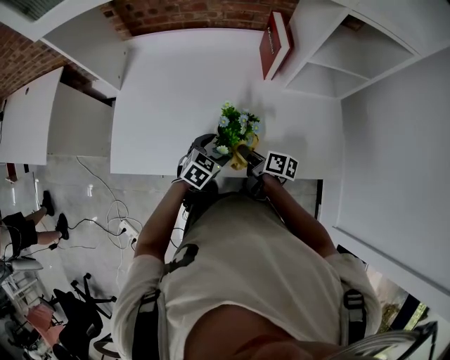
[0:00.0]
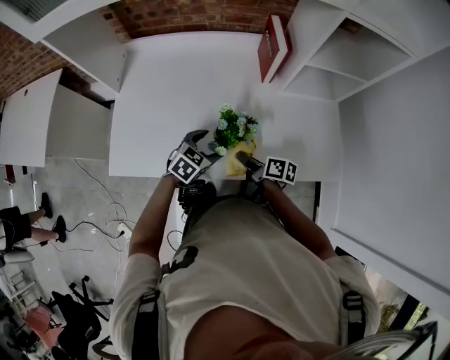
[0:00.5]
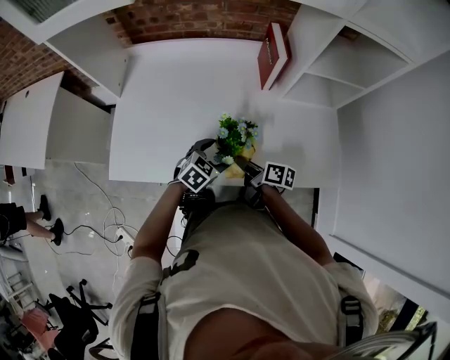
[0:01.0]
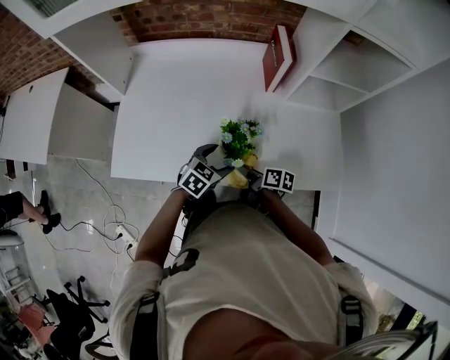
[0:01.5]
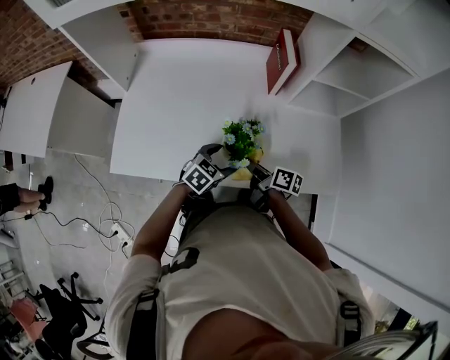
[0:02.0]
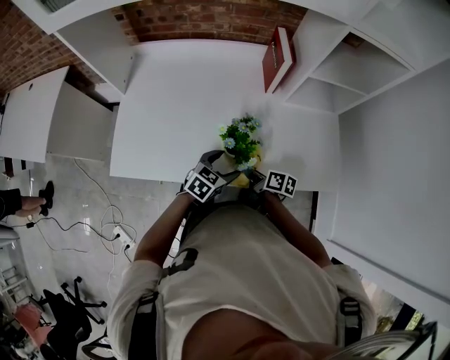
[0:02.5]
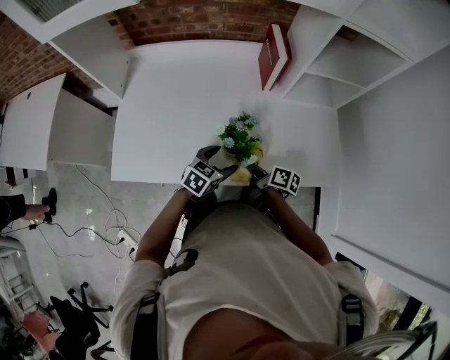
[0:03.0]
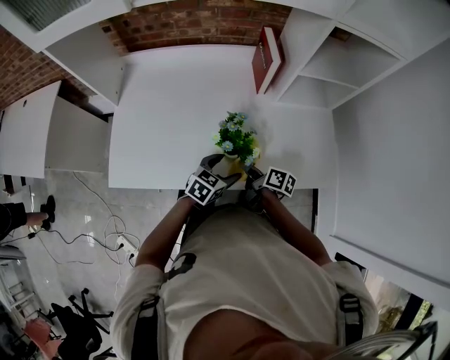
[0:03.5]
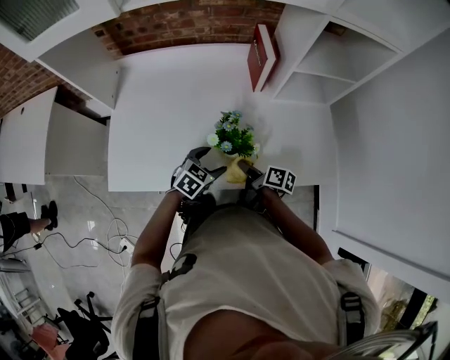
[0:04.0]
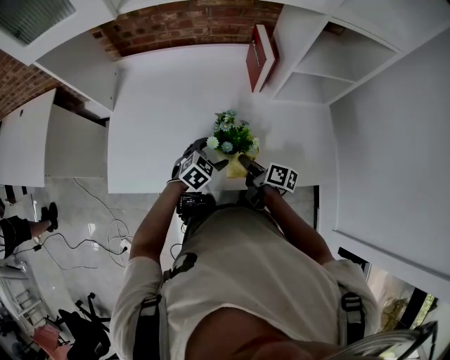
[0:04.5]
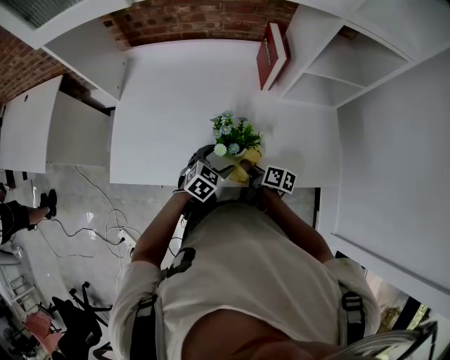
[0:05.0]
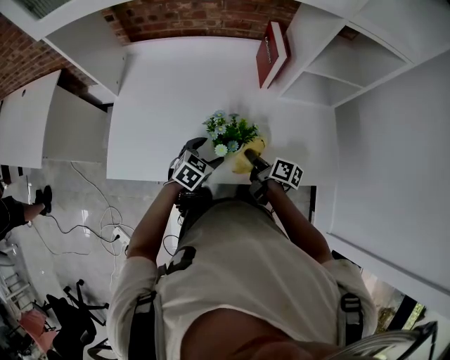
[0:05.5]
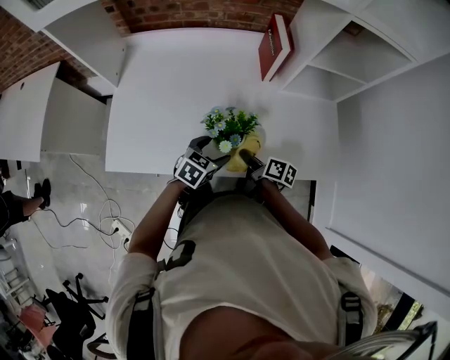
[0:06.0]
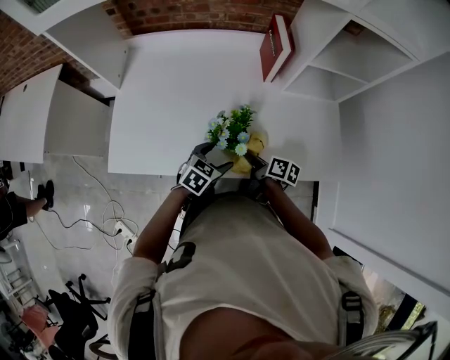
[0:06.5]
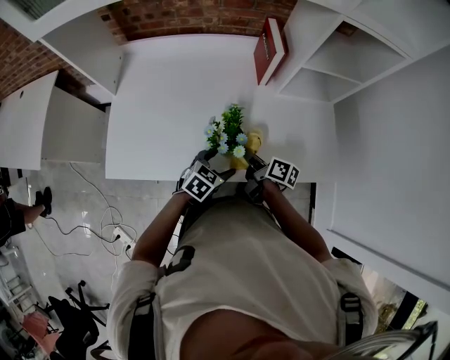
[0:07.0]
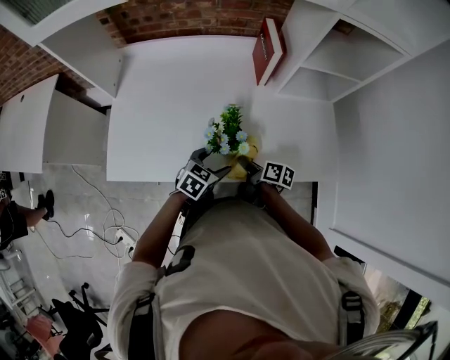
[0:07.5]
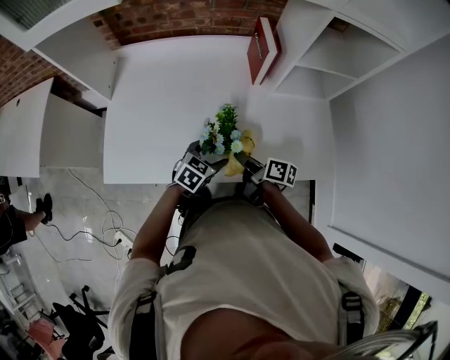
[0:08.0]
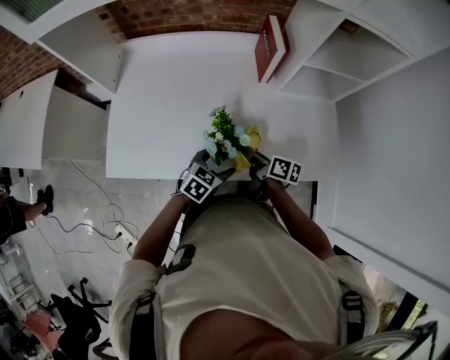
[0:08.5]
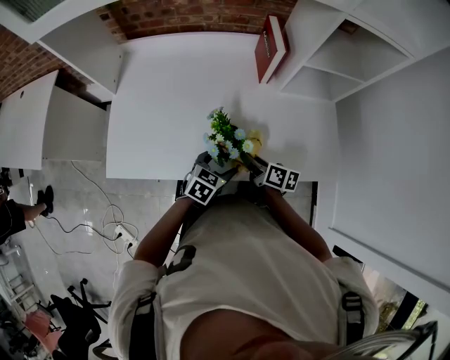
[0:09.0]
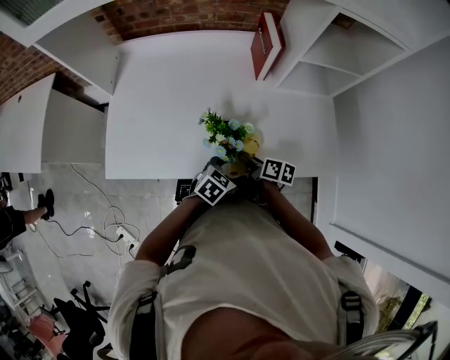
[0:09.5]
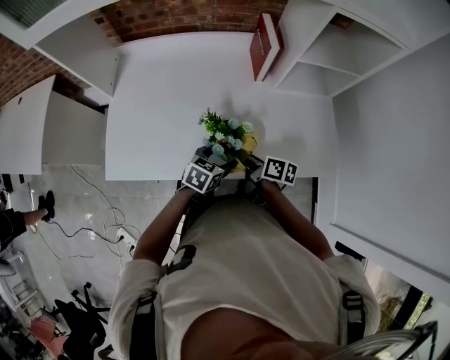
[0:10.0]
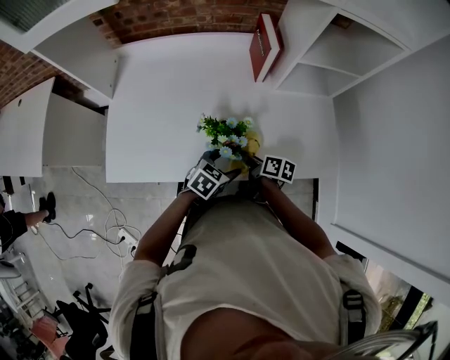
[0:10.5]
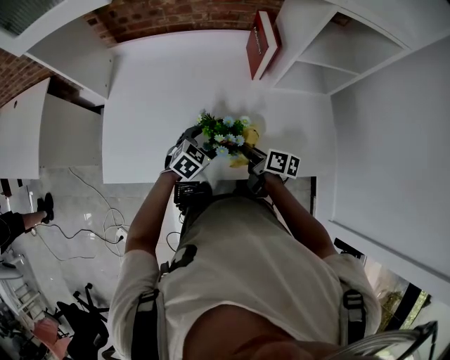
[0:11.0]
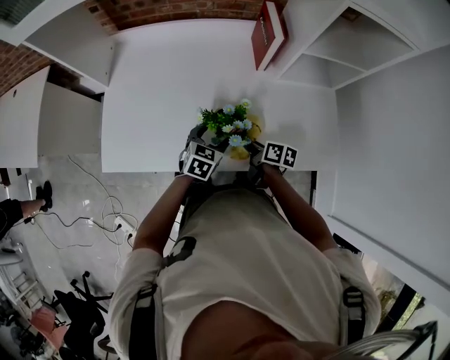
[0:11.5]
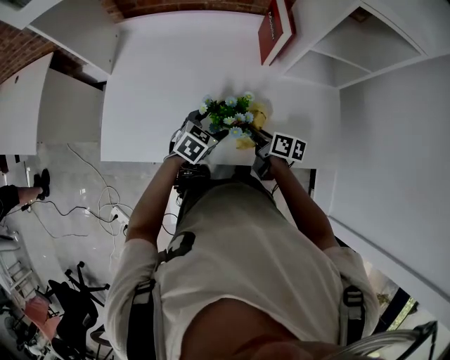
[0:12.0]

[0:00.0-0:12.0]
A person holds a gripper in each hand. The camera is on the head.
0:00.0 to 0:02.0: The grippers move only a little.
0:02.0 to 0:08.0: The grippers move only a little.
0:10.0 to 0:12.0: The left gripper goes about 5 cm forward; the right gripper goes up and down, about 5 cm each way, reversing 2 times.

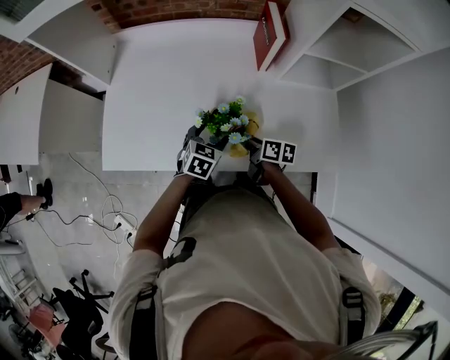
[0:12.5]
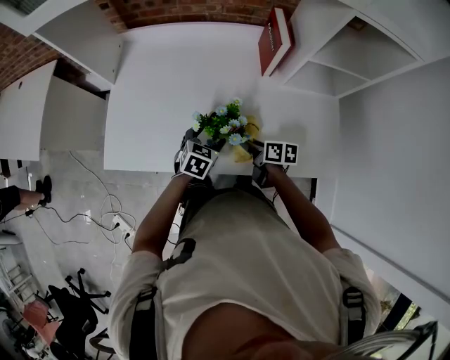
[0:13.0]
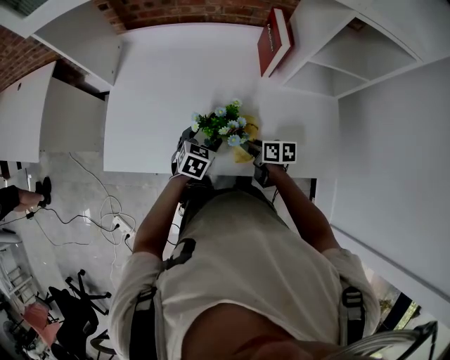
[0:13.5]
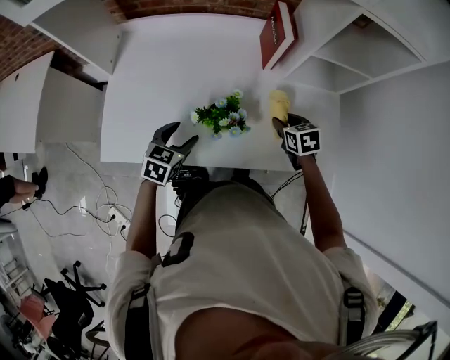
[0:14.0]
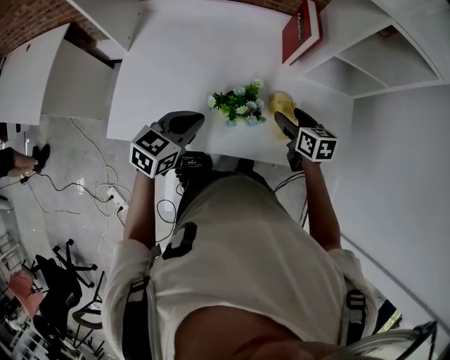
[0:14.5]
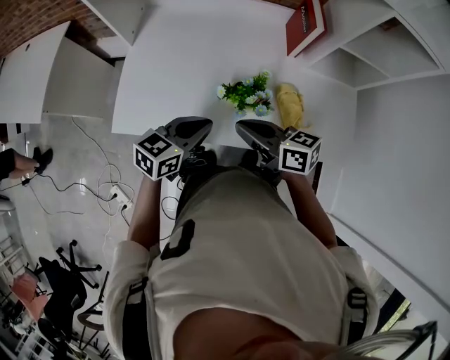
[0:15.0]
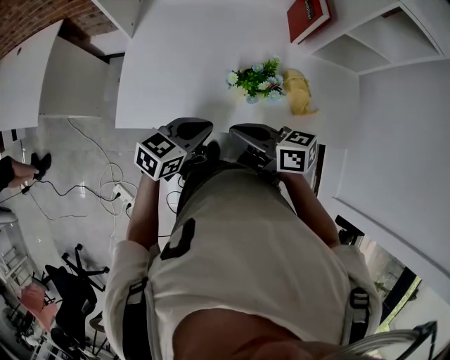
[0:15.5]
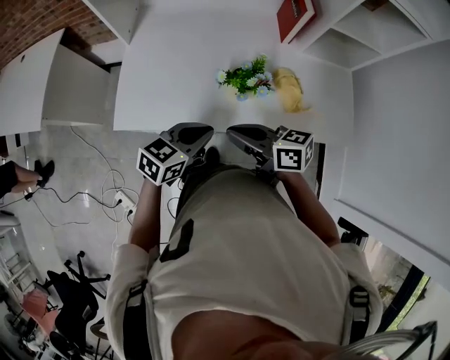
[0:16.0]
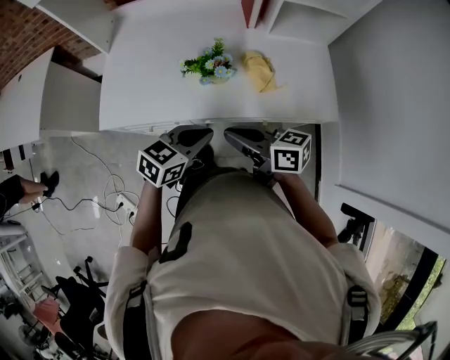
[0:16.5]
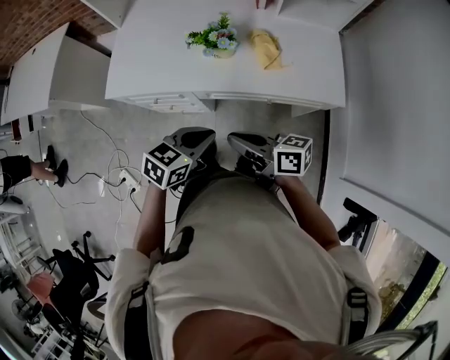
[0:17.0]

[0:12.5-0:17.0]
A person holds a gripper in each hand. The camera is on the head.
0:12.5 to 0:14.5: The right gripper moves upward and to the right, some 10 cm, swivels roughly 30 degrees, and opens up, while the left gripper is displaced upward and to the left by roughly 15 cm, and closes its fingers.
0:14.5 to 0:17.0: The right gripper shifts by about 35 cm, points its fingers about 30 degrees further upward, and closes its fingers. Meanwhile the left gripper moves about 30 cm.

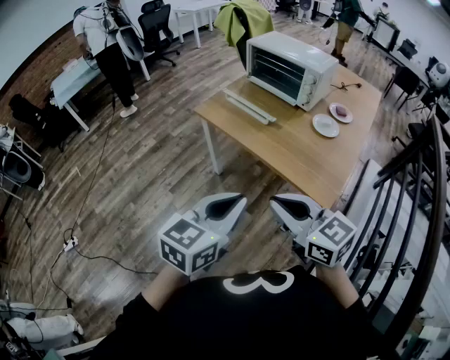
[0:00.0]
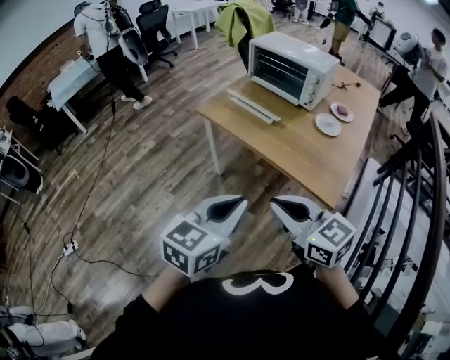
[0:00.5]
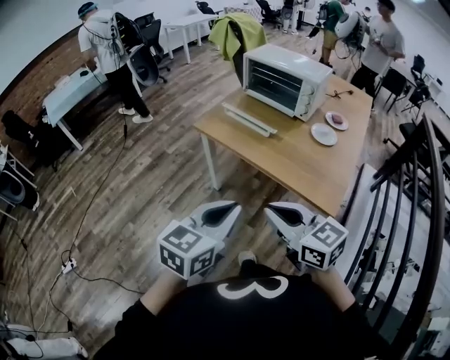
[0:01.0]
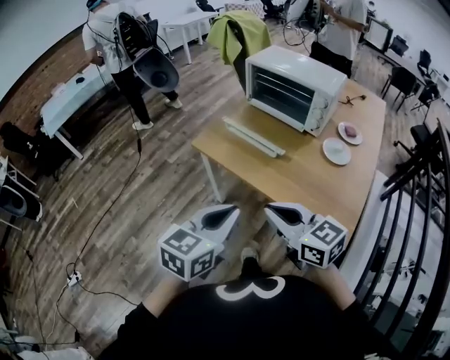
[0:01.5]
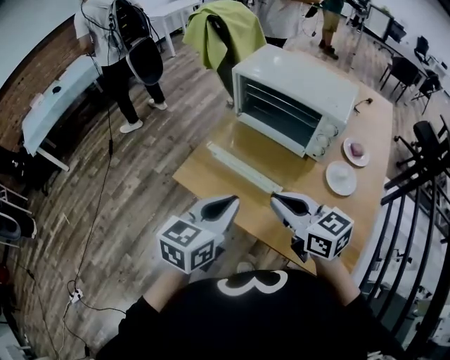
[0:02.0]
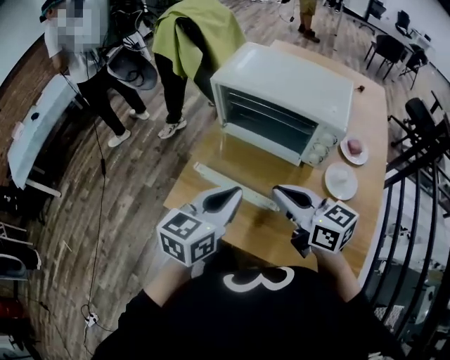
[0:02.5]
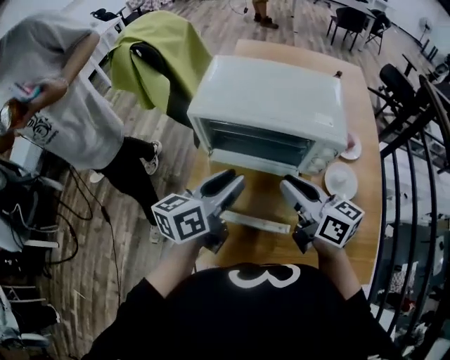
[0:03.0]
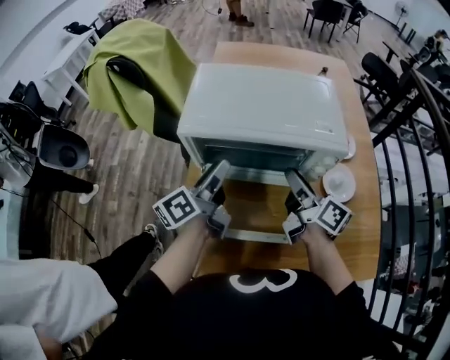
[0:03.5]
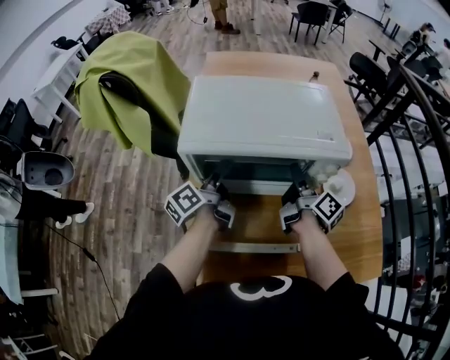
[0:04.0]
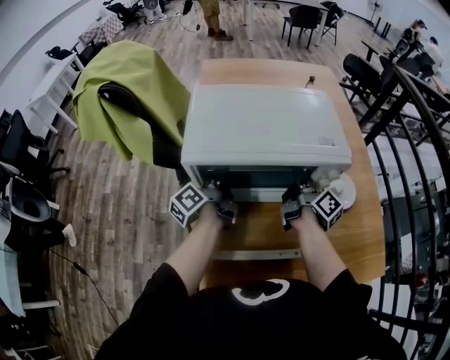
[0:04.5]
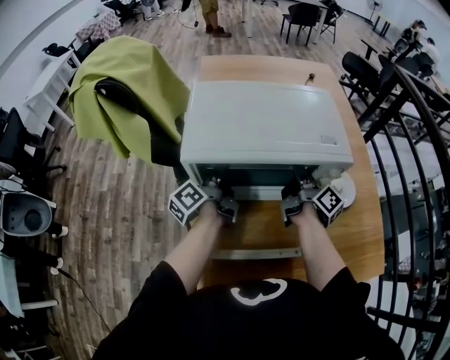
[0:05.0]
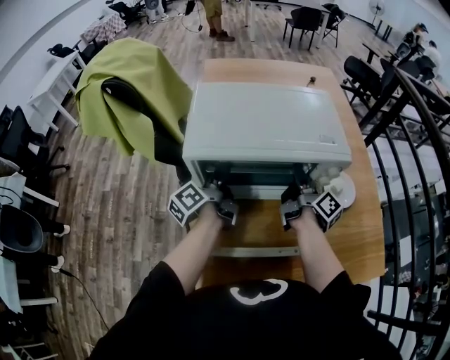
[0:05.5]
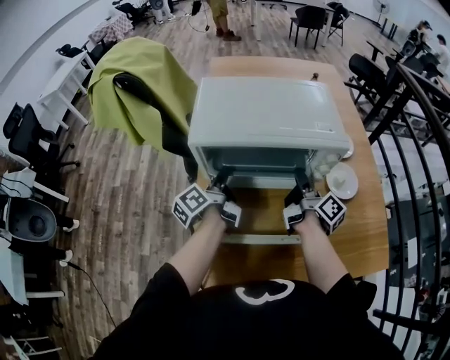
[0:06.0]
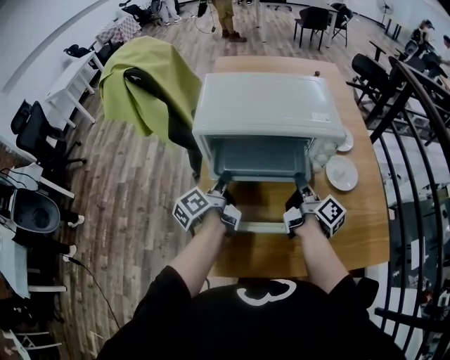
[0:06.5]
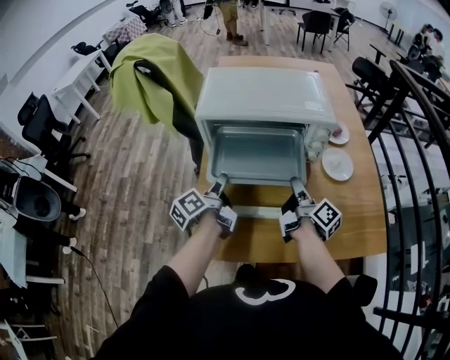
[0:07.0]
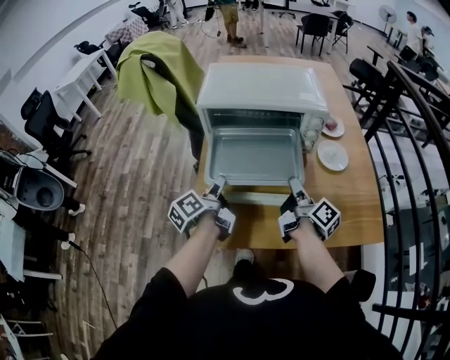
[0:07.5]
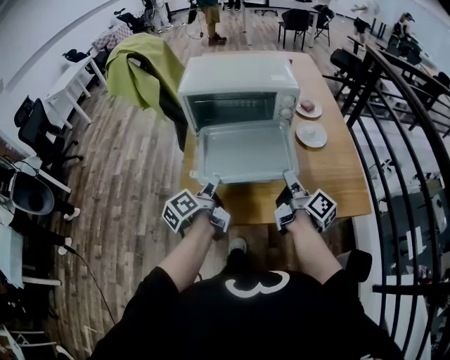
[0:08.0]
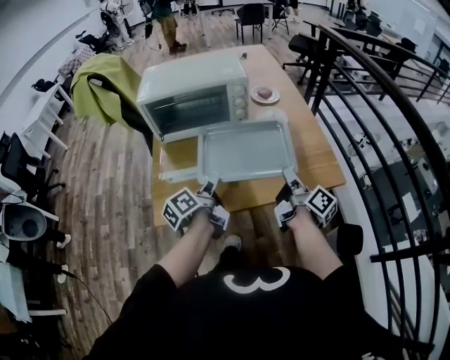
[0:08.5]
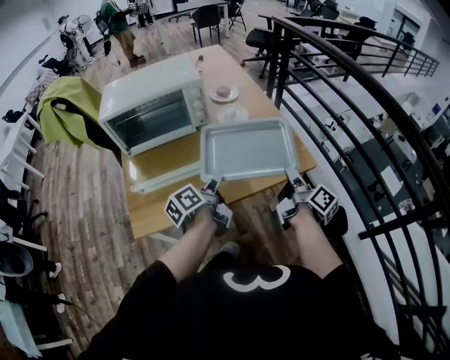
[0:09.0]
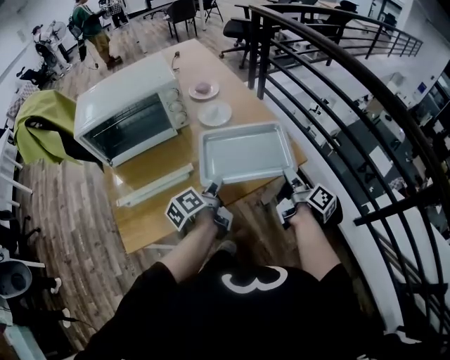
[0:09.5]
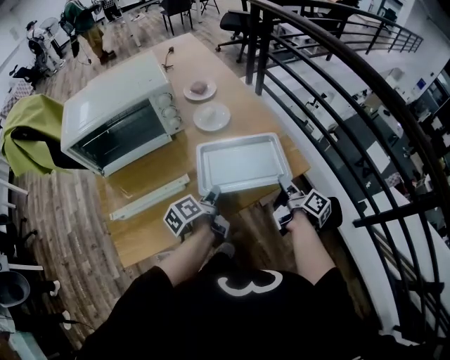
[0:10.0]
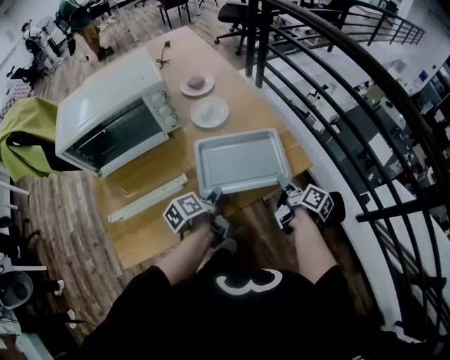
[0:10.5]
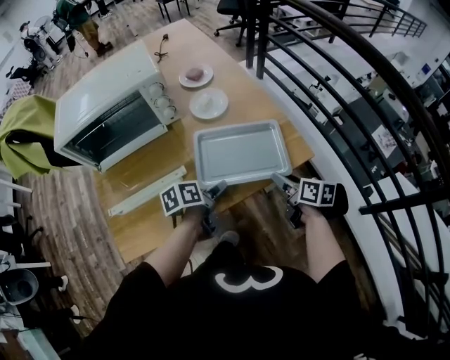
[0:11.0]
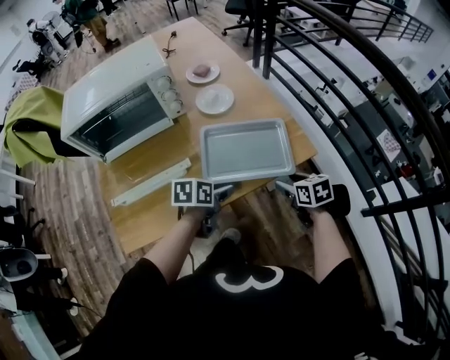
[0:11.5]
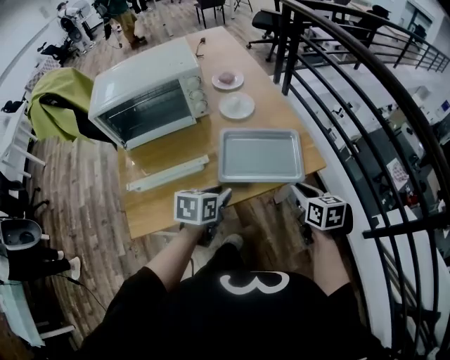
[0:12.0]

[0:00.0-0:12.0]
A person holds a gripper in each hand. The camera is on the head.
0:00.0 to 0:02.0: Both grippers are carried forward, about 40 cm.
0:02.0 to 0:04.0: The right gripper changes place by approximately 40 cm, changes its angle by approximately 90 degrees, and opens its fingers. Meanwhile the left gripper shifts by about 50 cm, rolls counterclockwise, seen from behind, by roughly 50 degrees, and opens.
0:04.0 to 0:06.0: The left gripper closes up.
0:06.0 to 0:08.0: Both grippers move backward, some 25 cm.
0:08.0 to 0:10.0: The right gripper shifts by approximately 30 cm, and swivels some 30 degrees. The left gripper moves approximately 30 cm, and turns by about 30 degrees.
0:10.0 to 0:12.0: The grippers both shift backward by approximately 5 cm. The left gripper twists roughly 50 degrees clockwise, seen from behind, and opens and closes again; the right gripper rolls counterclockwise, seen from behind, by about 60 degrees, and opens, then closes again.
